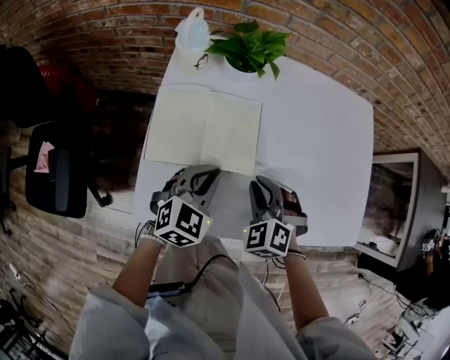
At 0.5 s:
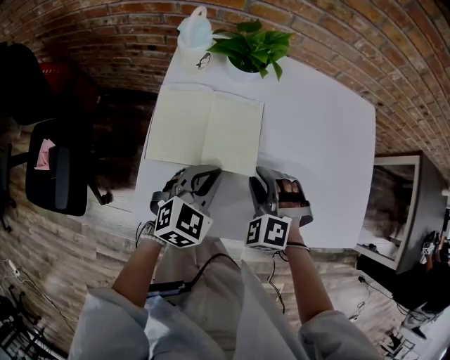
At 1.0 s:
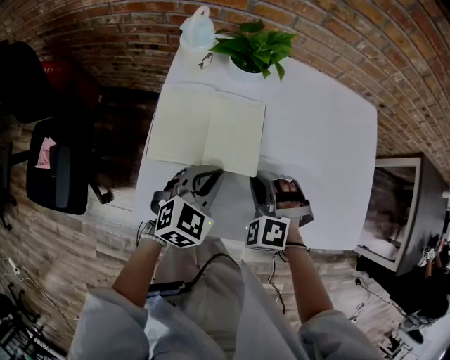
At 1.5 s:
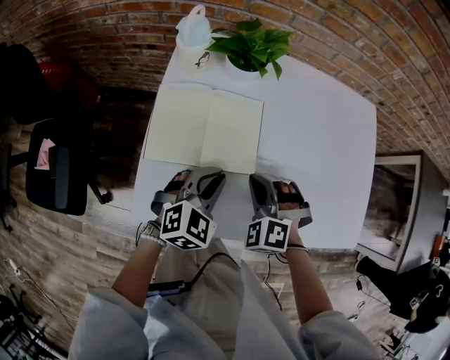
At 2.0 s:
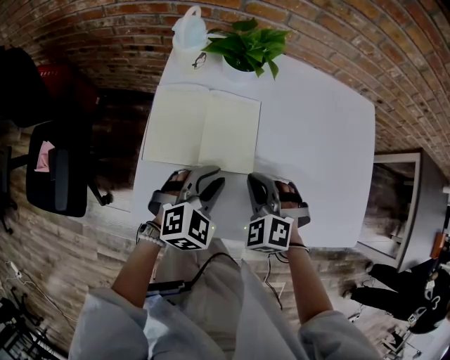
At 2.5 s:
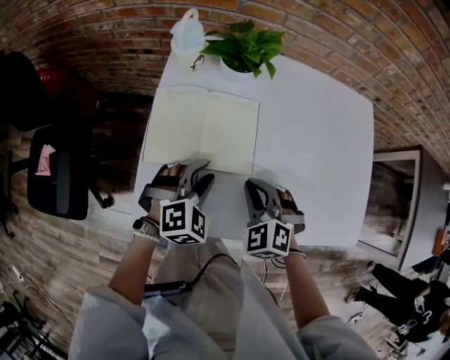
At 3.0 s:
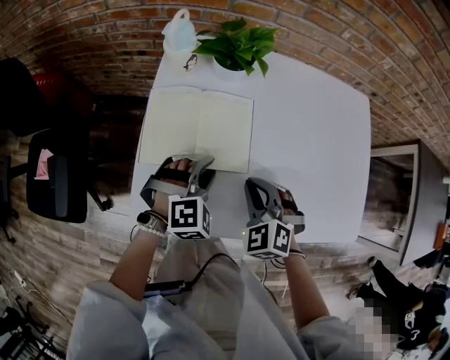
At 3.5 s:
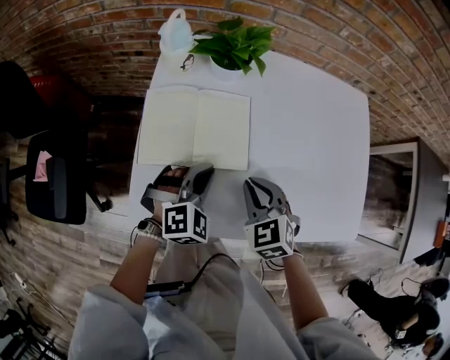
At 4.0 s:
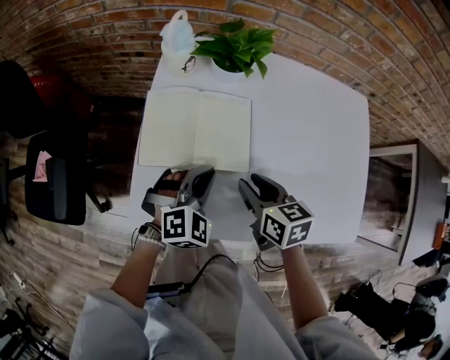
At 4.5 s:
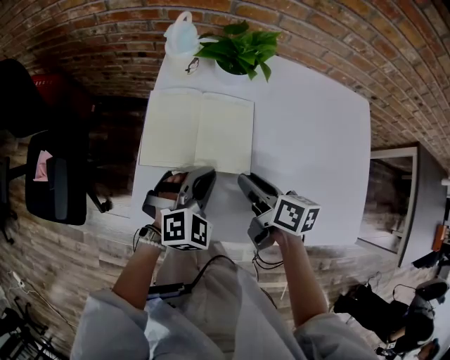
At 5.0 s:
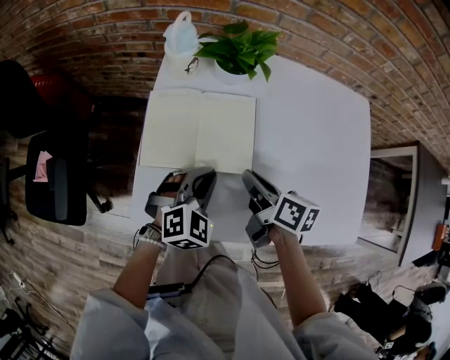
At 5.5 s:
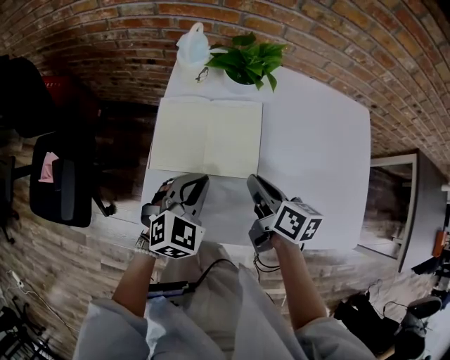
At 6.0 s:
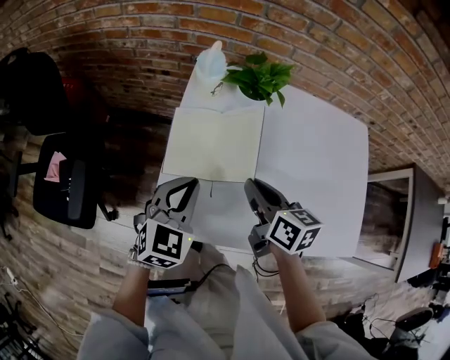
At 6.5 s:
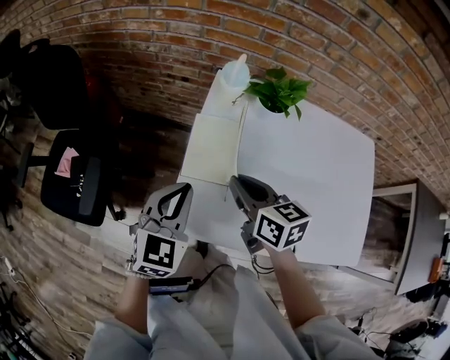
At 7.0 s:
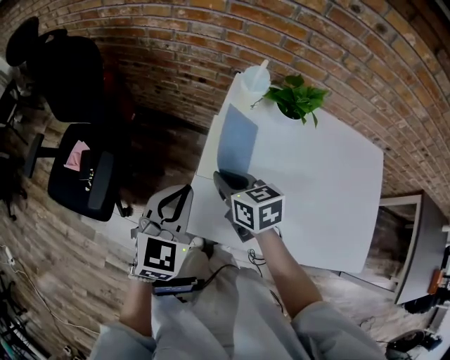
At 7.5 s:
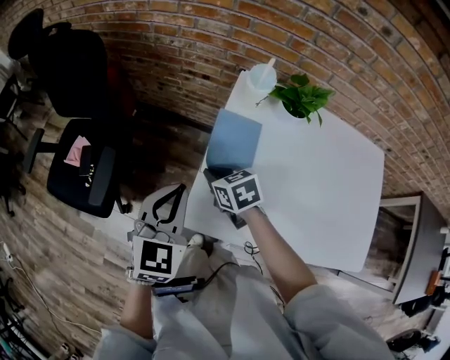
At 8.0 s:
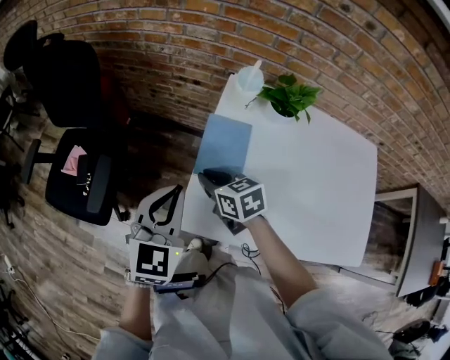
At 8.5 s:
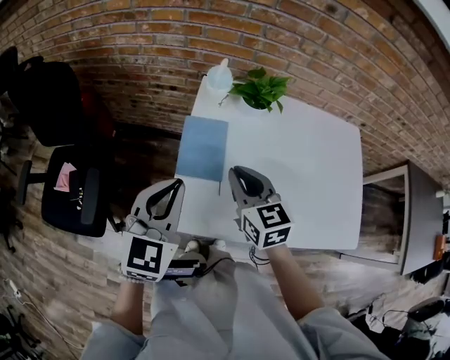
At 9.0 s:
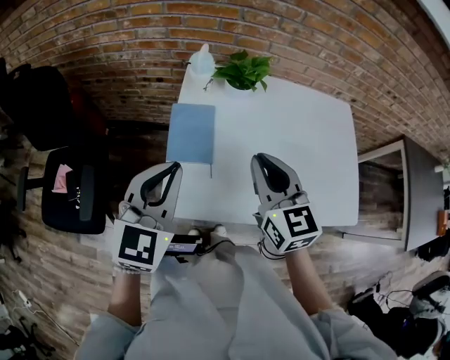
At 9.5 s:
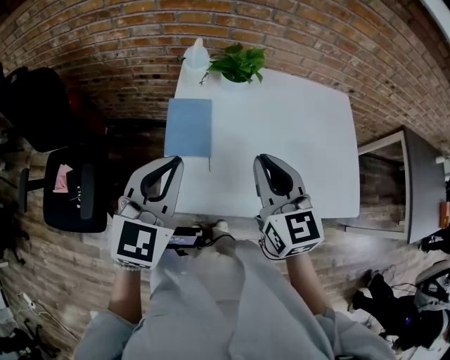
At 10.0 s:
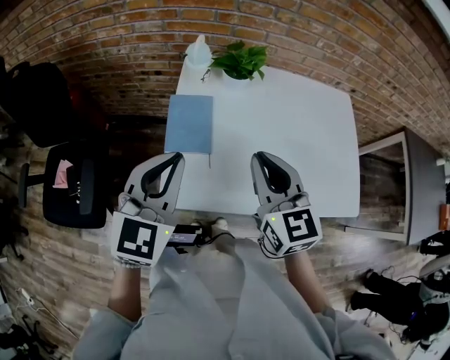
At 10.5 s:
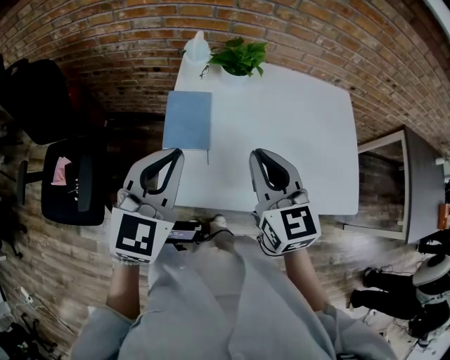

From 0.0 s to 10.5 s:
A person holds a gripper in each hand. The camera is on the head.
From 2.0 s to 4.0 s: The right gripper twists about 70 degrees clockwise, seen from behind, and opens its fingers.
From 4.0 s to 6.5 s: Both grippers travel together to the left and upward, approximately 20 cm. The left gripper swivels about 40 degrees.
From 6.5 s to 8.5 s: The left gripper moves upward, some 10 cm. The right gripper goes downward and returns, about 10 cm each way, and turns by approximately 20 degrees.
From 8.5 s to 10.5 s: The left gripper shifts by about 5 cm, while the right gripper shifts approximately 15 cm to the right, upward and backward.

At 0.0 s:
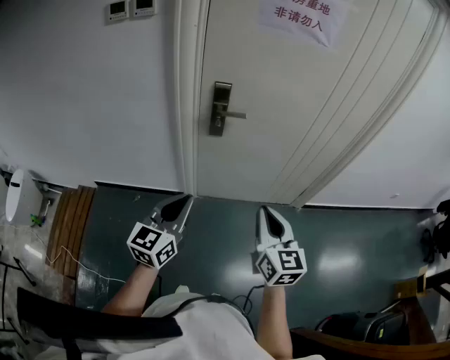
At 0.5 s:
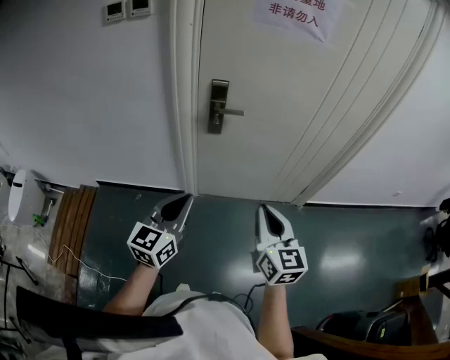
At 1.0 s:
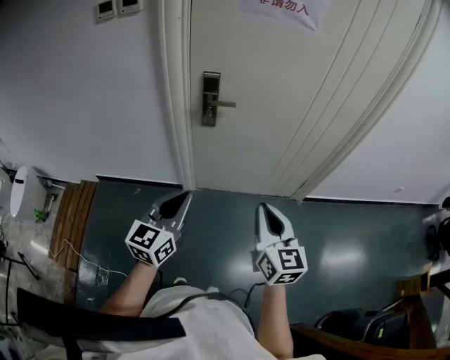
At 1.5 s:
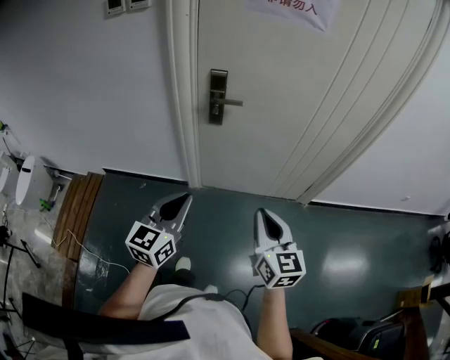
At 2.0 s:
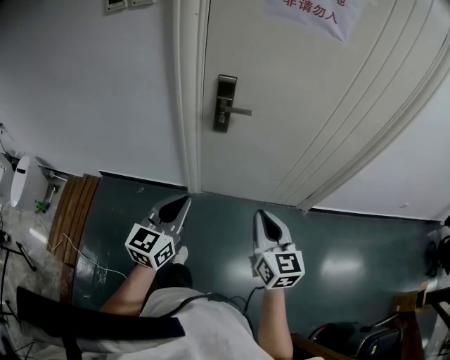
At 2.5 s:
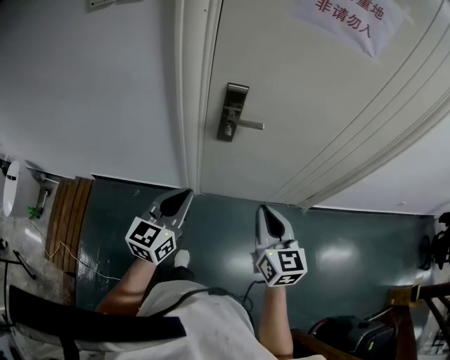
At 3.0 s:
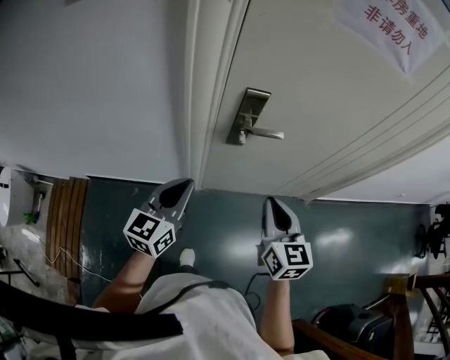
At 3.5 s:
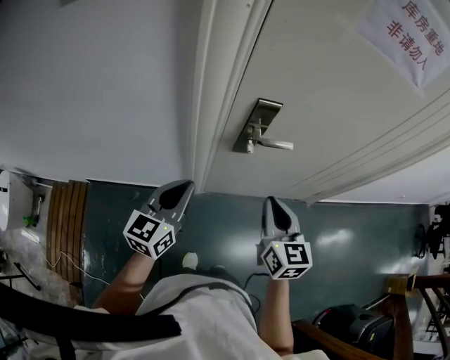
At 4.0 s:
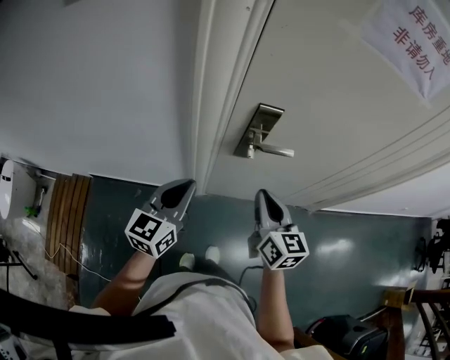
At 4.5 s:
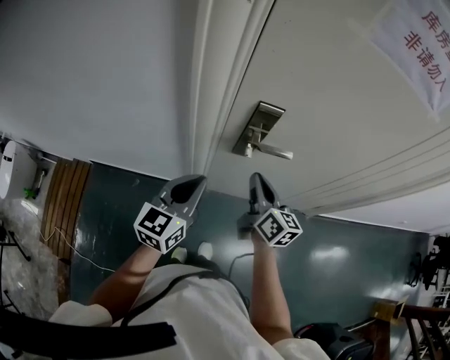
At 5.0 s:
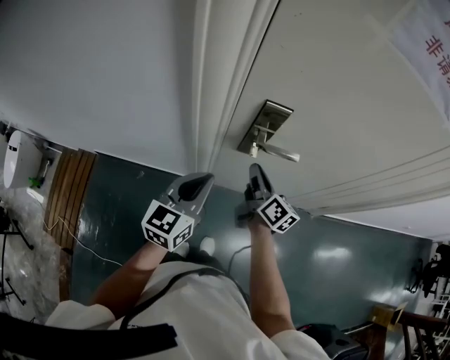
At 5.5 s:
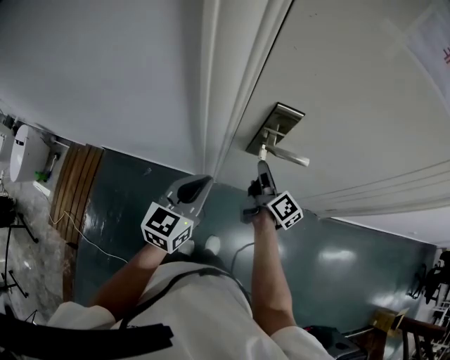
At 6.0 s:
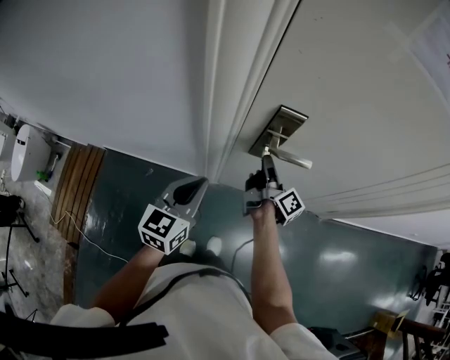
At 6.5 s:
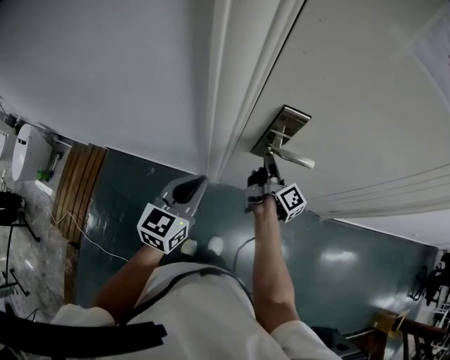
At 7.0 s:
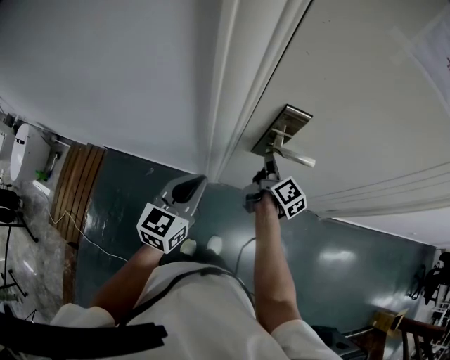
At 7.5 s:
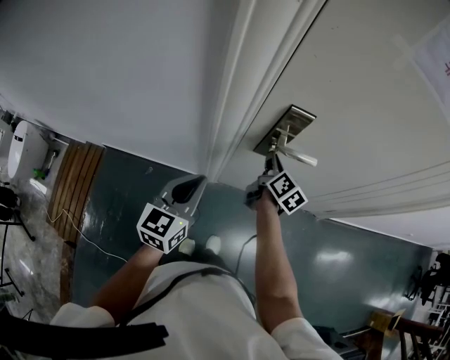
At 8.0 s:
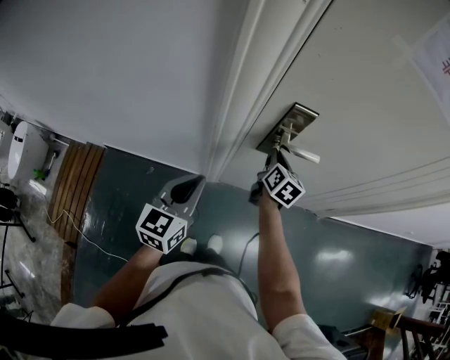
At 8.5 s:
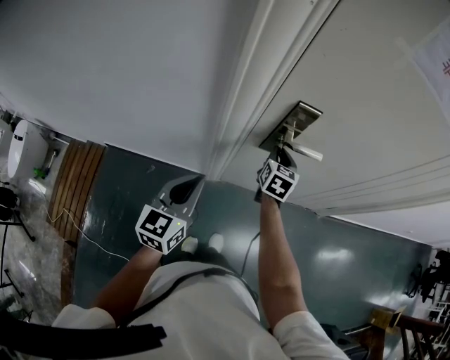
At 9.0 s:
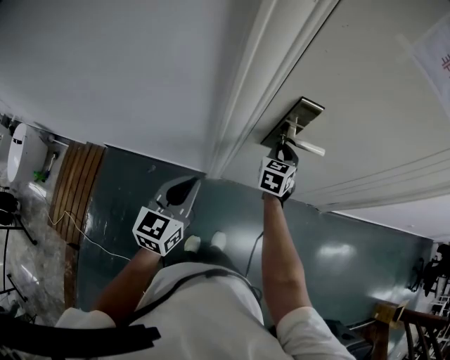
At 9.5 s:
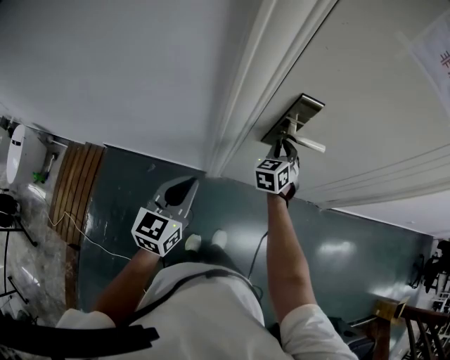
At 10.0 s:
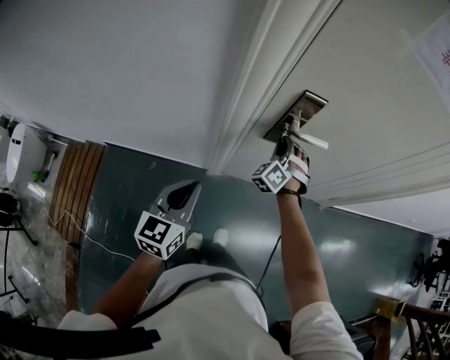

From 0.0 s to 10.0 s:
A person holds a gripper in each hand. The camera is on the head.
From 0.0 s to 2.0 s: The right gripper changes place by roughly 5 cm.
From 2.0 s to 4.0 s: The grippers both shift forward and to the left by about 30 cm.
From 4.0 s to 6.0 s: The left gripper moves approximately 5 cm, while the right gripper shifts about 20 cm forward and downward, rotates around the line of its fingers by some 70 degrees, clockwise from behind, and opens.
From 6.0 s to 8.0 s: The right gripper rolls counterclockwise, seen from behind, by some 50 degrees. The left gripper moves approximately 5 cm.
From 8.0 s to 10.0 s: The left gripper is displaced backward by approximately 5 cm; the right gripper rotates around the line of its fingers by approximately 90 degrees, counterclockwise from behind.

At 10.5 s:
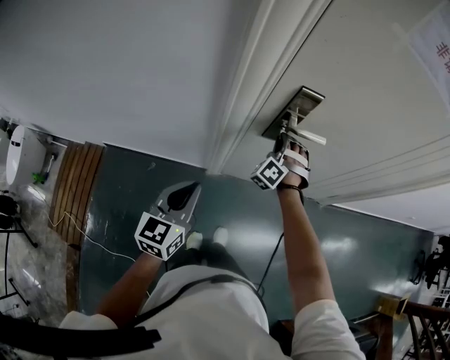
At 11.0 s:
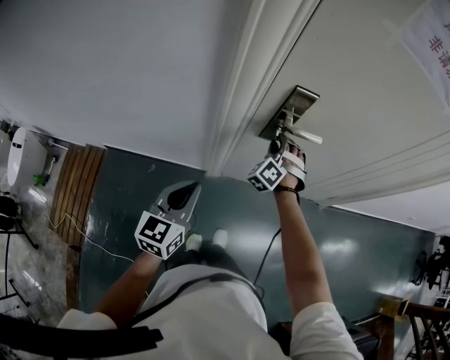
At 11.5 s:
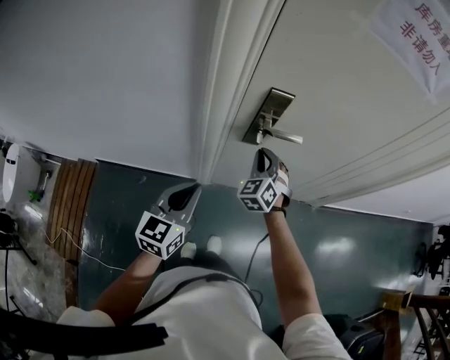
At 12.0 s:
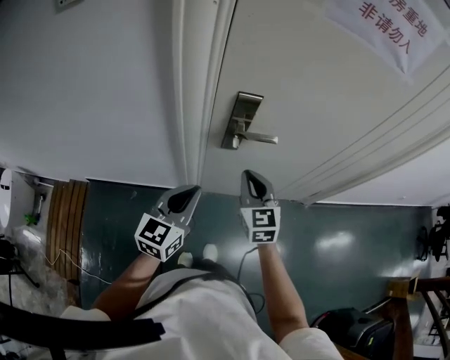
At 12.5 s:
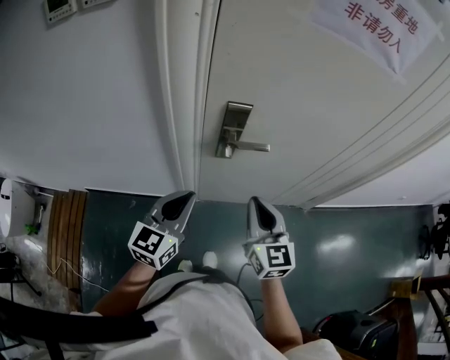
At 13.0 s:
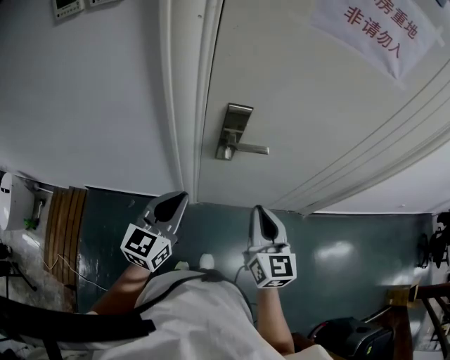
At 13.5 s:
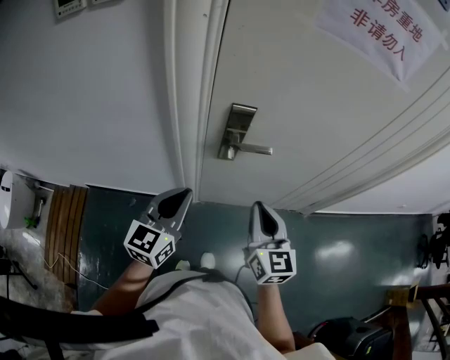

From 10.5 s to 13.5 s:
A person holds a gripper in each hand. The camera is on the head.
From 10.5 s to 12.0 s: The left gripper is displaced to the right and forward by roughly 10 cm. The right gripper heads backward, upward and to the right, covering some 15 cm, and rolls clockwise, seen from behind, by about 60 degrees.
From 12.0 s to 13.5 s: The right gripper heads backward, upward and to the right, covering about 10 cm.

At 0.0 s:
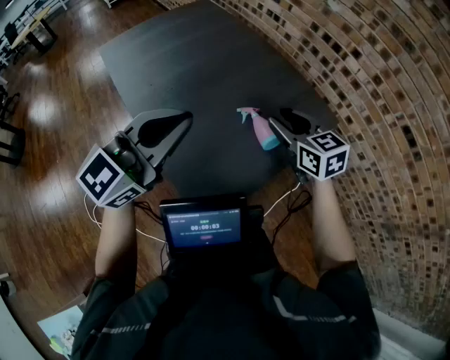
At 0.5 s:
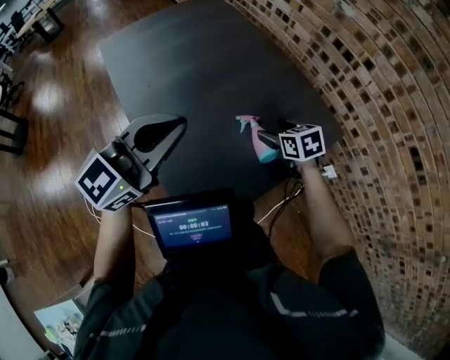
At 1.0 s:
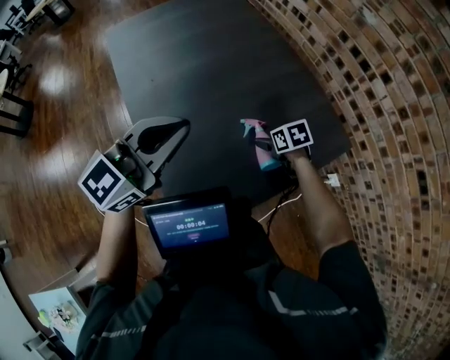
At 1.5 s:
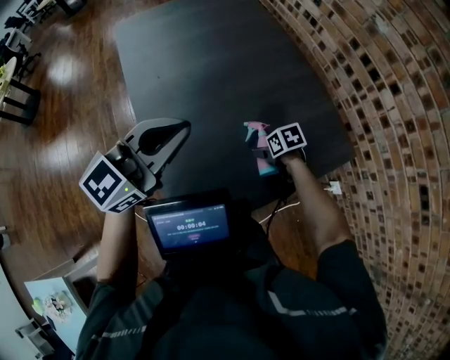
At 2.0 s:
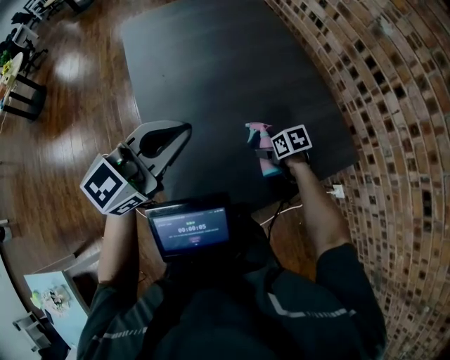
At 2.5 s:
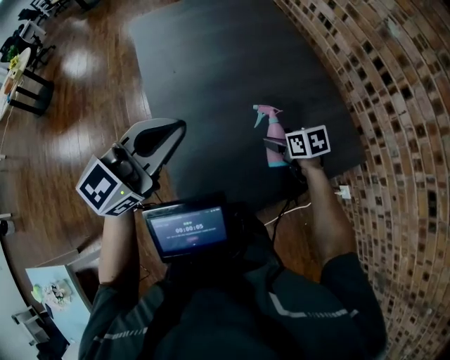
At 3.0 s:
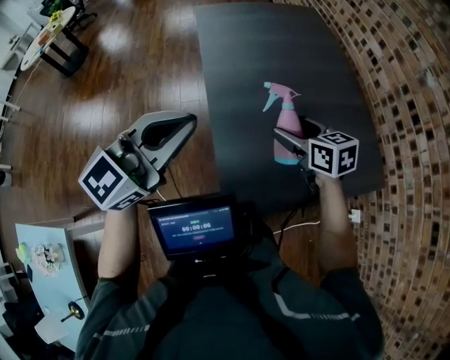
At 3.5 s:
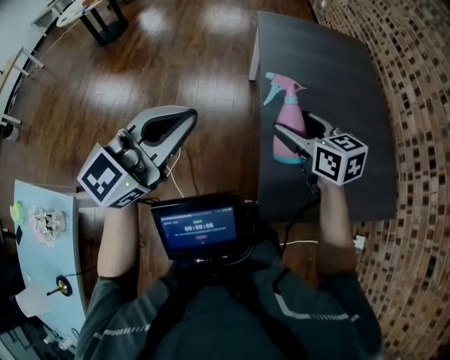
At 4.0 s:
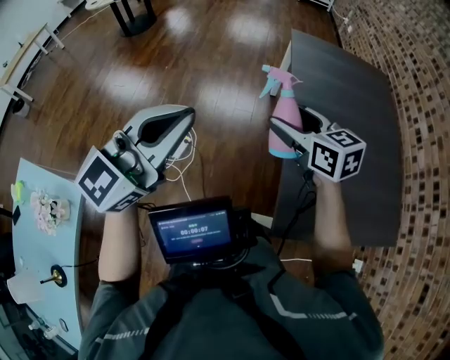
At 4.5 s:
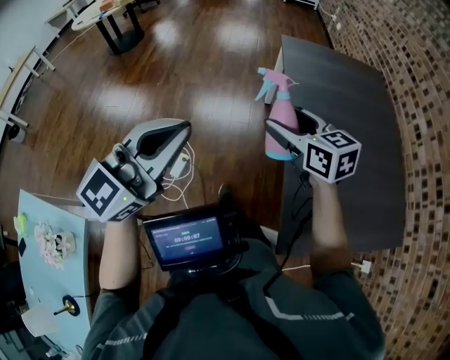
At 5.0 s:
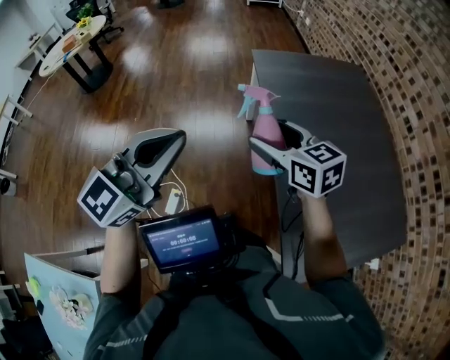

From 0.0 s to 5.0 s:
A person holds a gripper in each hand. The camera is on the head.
From 0.0 s to 2.5 s: The right gripper goes about 20 cm downward, turns by some 40 degrees, and opens up. Meanwhile the left gripper moves about 10 cm.
From 2.5 s to 5.0 s: The two grippers travel together, to the left, approximately 50 cm. The right gripper travels upward by some 25 cm, and rotates some 40 degrees.
